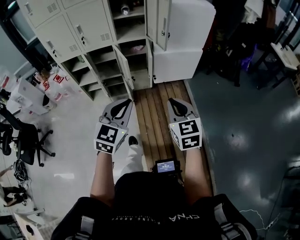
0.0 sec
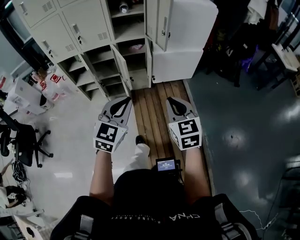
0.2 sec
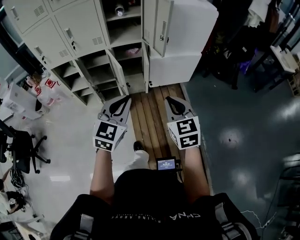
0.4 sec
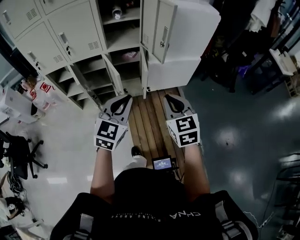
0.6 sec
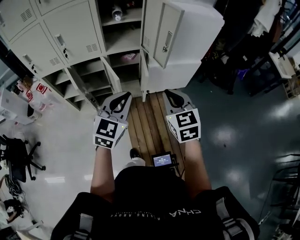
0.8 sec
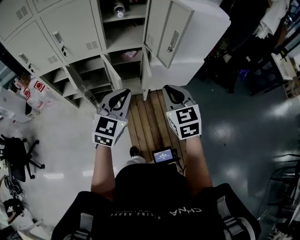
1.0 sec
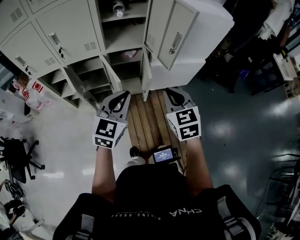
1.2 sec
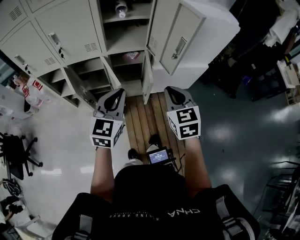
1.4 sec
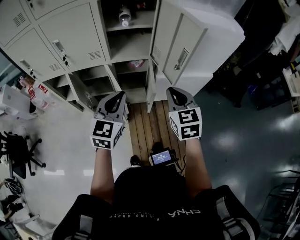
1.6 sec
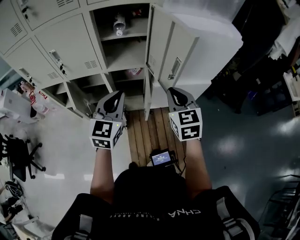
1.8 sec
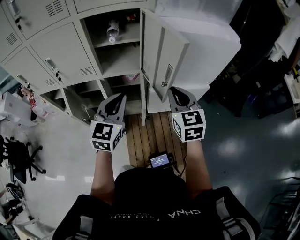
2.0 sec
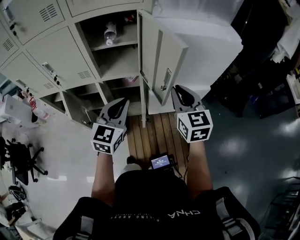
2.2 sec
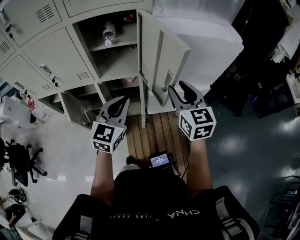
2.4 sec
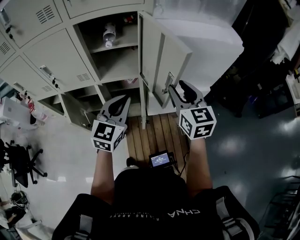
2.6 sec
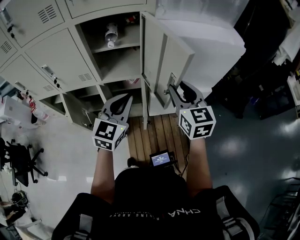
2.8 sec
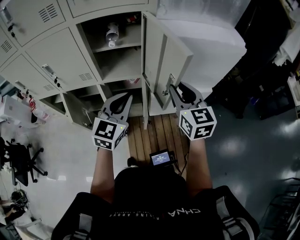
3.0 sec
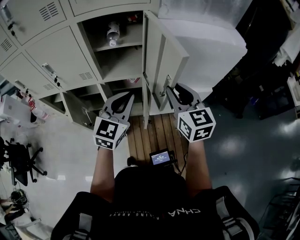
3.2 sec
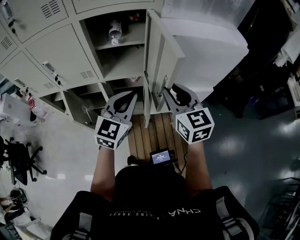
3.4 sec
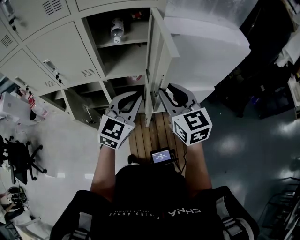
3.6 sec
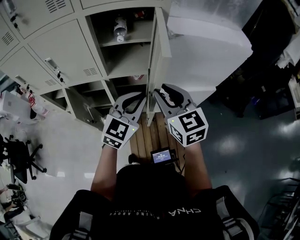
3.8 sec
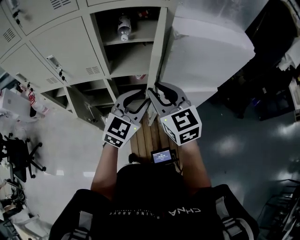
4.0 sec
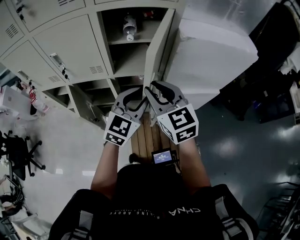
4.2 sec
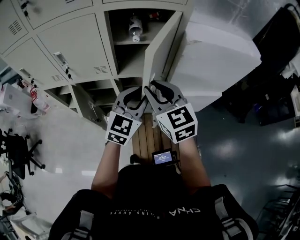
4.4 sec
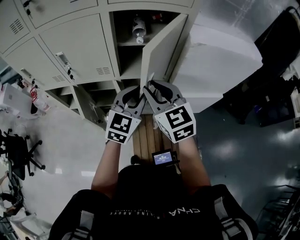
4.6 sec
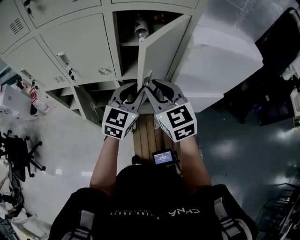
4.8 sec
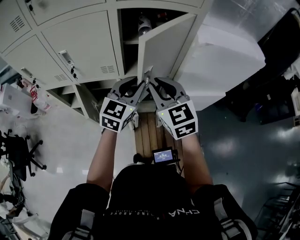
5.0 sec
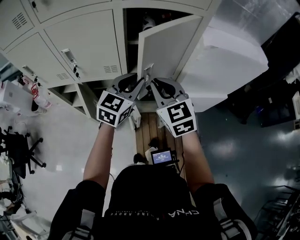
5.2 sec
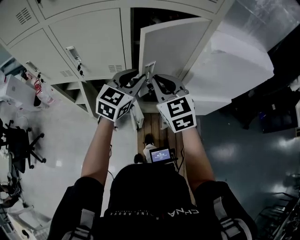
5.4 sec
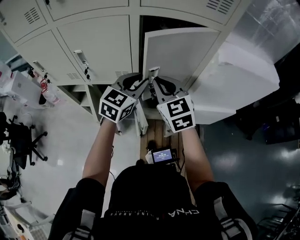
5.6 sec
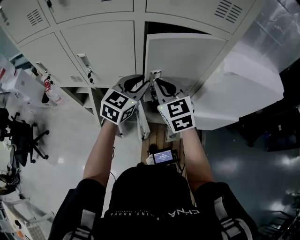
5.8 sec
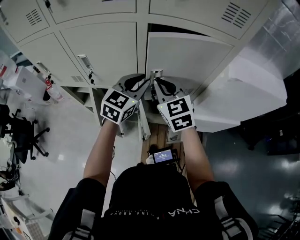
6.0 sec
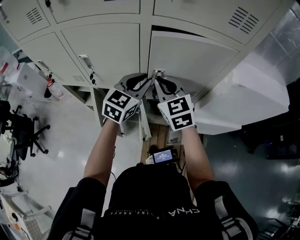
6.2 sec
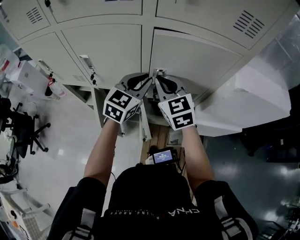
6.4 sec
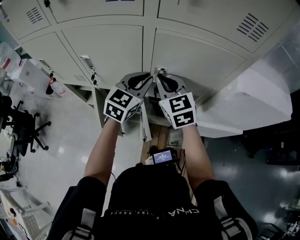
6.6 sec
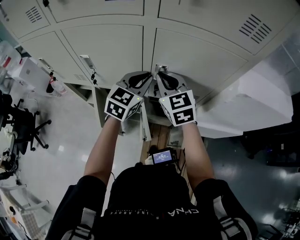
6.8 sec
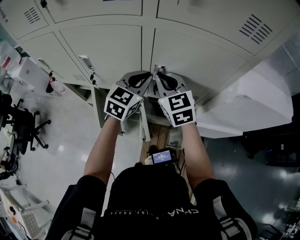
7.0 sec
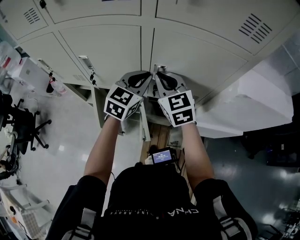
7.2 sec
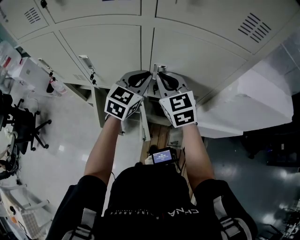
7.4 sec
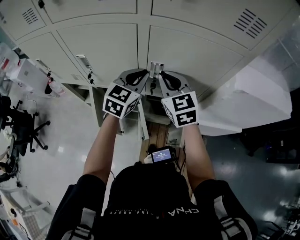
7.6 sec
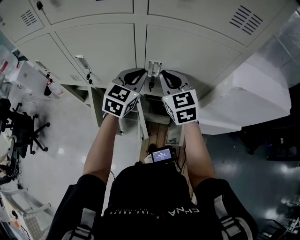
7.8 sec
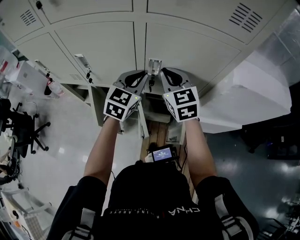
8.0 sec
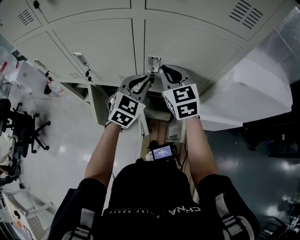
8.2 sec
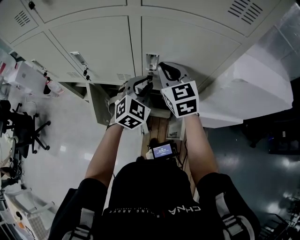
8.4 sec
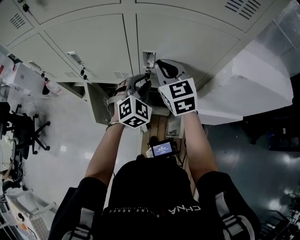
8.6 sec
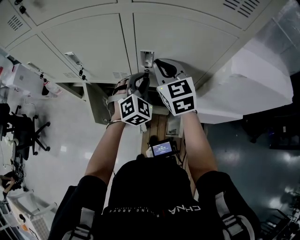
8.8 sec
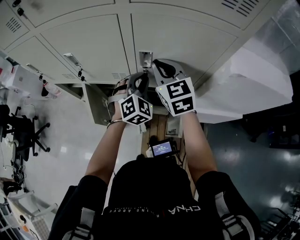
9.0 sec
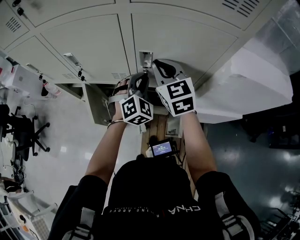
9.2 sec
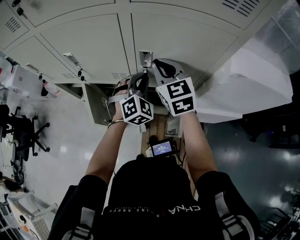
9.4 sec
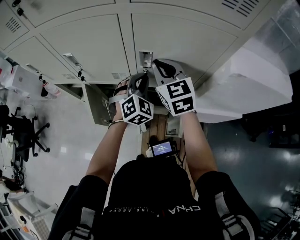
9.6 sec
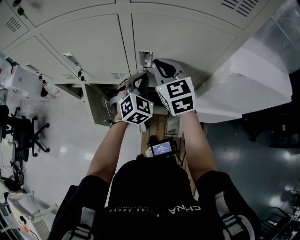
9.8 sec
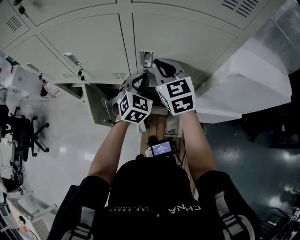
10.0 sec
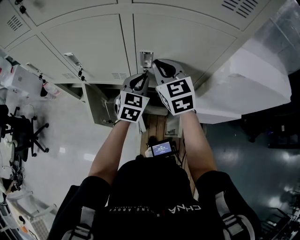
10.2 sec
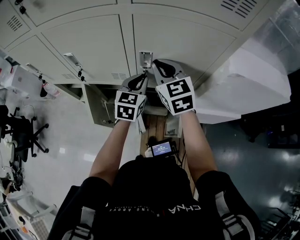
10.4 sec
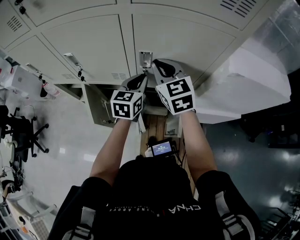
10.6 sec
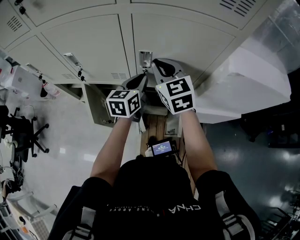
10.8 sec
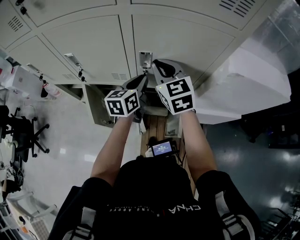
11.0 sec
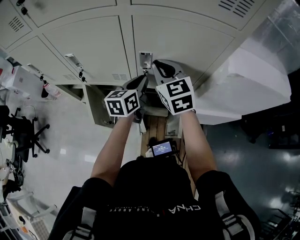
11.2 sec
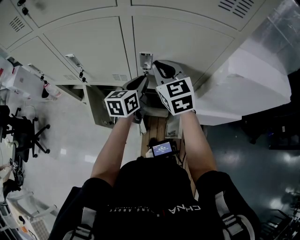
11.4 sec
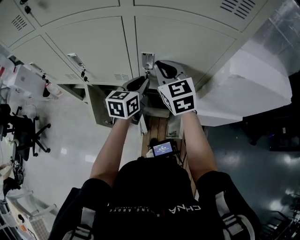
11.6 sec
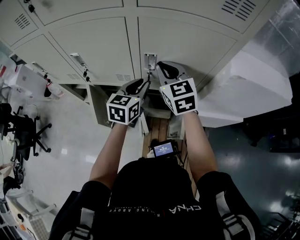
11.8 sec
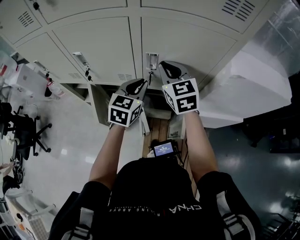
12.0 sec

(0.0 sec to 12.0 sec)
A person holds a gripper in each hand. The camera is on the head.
0.0 sec - 1.6 sec: The pair of grippers is taken forward, approximately 40 cm.
1.6 sec - 3.0 sec: The right gripper moves forward, to the right and upward, roughly 15 cm, and opens. The left gripper moves forward and to the right, some 15 cm.
3.0 sec - 4.4 sec: The right gripper shifts approximately 20 cm to the left; the left gripper heads to the left, covering roughly 5 cm, and opens up.
4.4 sec - 6.0 sec: The grippers both shift forward and to the left by some 20 cm.
6.0 sec - 7.6 sec: Both grippers travel together forward, approximately 5 cm.
7.6 sec - 9.0 sec: The left gripper heads downward, covering about 10 cm, and changes its angle by roughly 40 degrees.
9.0 sec - 10.4 sec: The left gripper twists some 40 degrees counterclockwise, seen from behind.

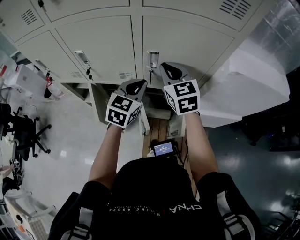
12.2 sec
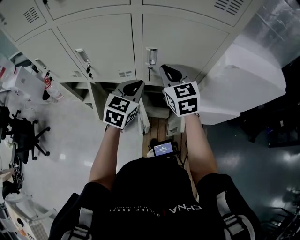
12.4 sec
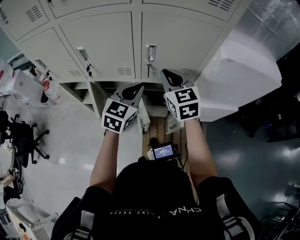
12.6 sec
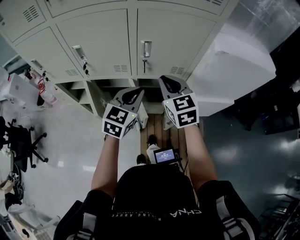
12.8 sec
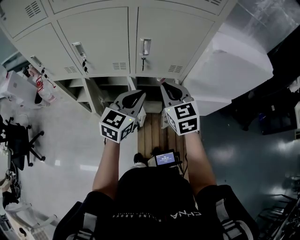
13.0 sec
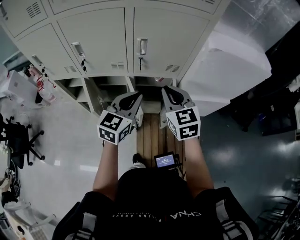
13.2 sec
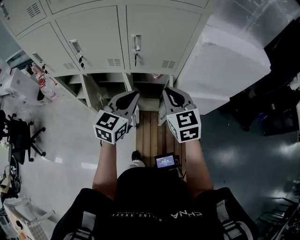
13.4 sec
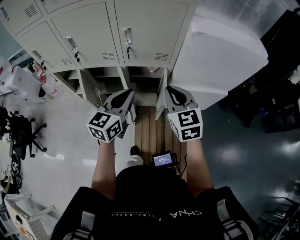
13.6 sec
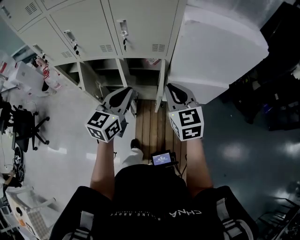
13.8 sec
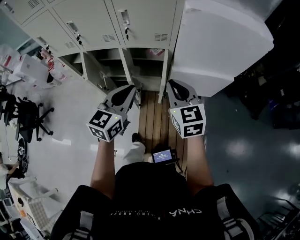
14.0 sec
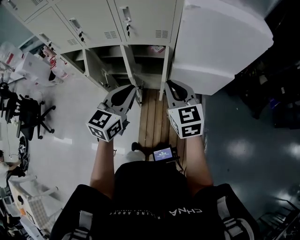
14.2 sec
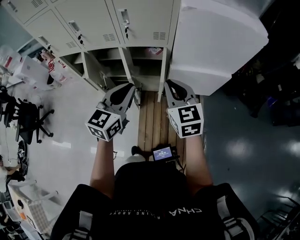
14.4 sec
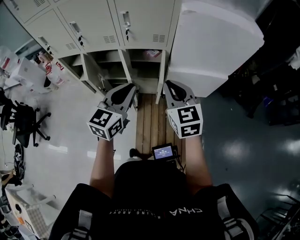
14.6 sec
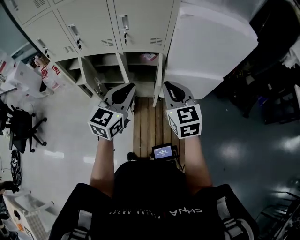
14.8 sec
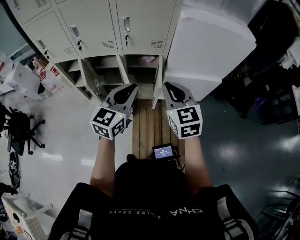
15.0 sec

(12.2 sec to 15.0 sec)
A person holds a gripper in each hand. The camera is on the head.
12.2 sec - 13.6 sec: Both grippers move backward and to the right, about 25 cm.
13.6 sec - 15.0 sec: Both grippers move backward, some 10 cm.

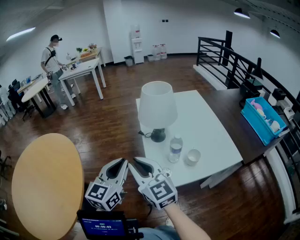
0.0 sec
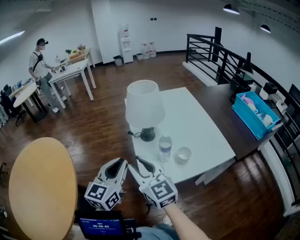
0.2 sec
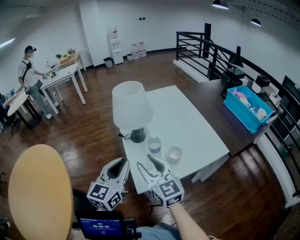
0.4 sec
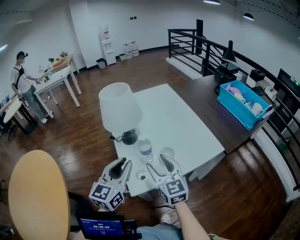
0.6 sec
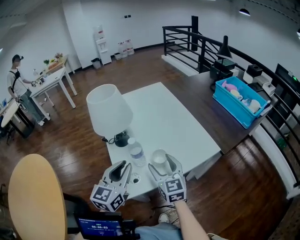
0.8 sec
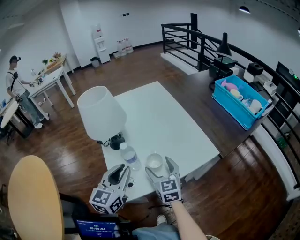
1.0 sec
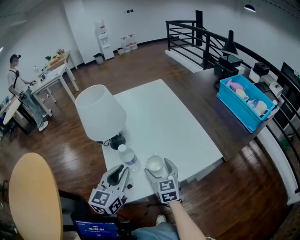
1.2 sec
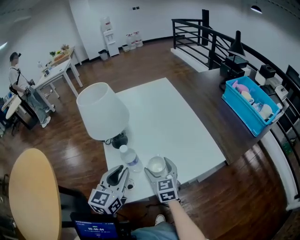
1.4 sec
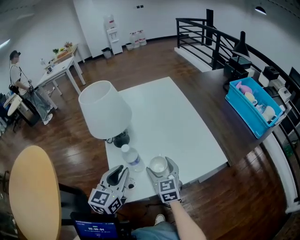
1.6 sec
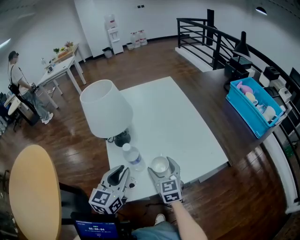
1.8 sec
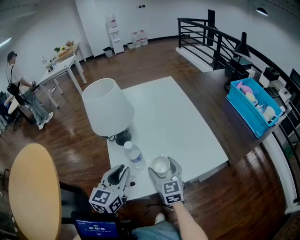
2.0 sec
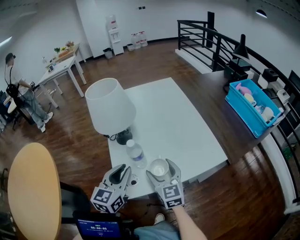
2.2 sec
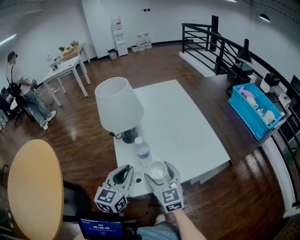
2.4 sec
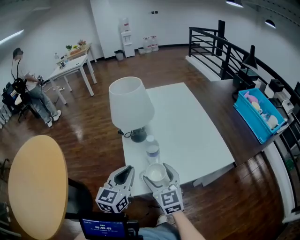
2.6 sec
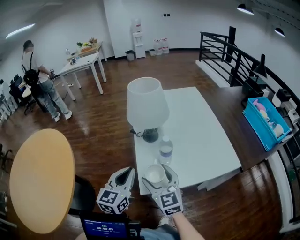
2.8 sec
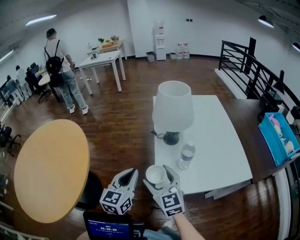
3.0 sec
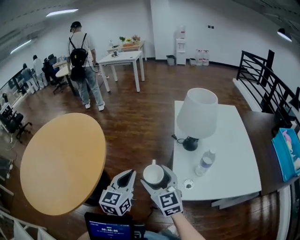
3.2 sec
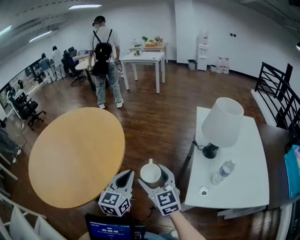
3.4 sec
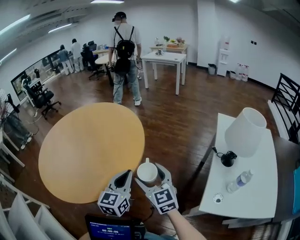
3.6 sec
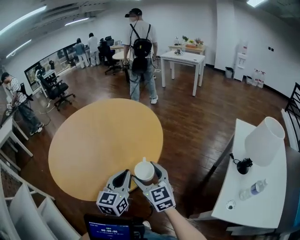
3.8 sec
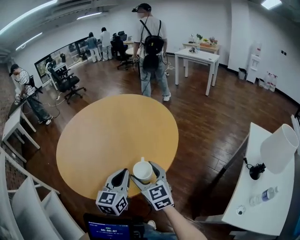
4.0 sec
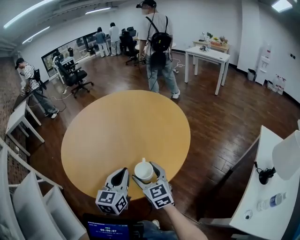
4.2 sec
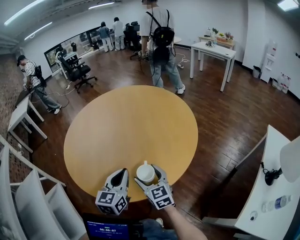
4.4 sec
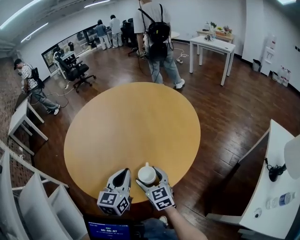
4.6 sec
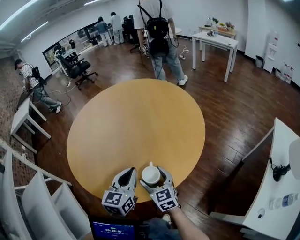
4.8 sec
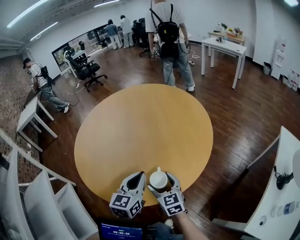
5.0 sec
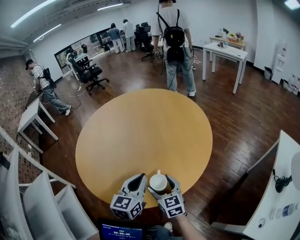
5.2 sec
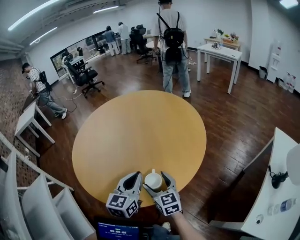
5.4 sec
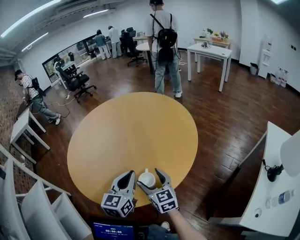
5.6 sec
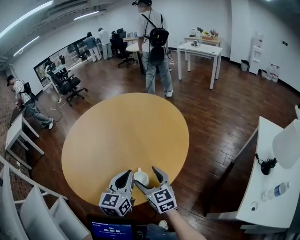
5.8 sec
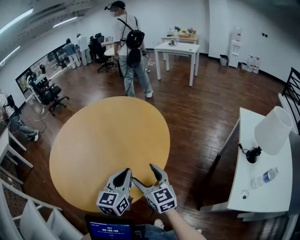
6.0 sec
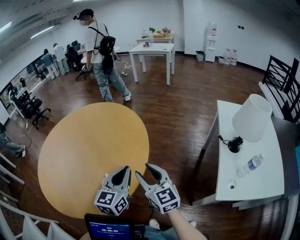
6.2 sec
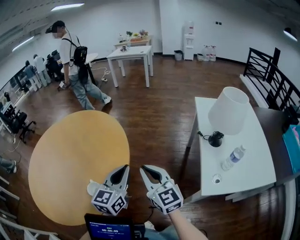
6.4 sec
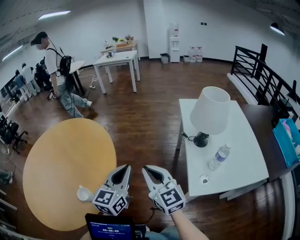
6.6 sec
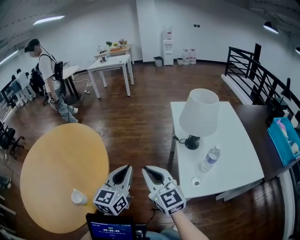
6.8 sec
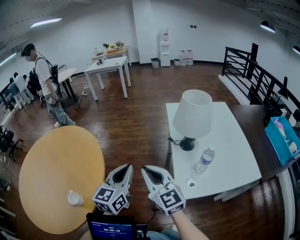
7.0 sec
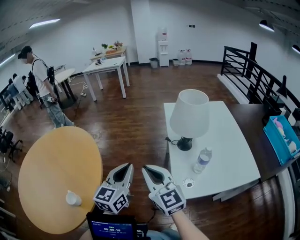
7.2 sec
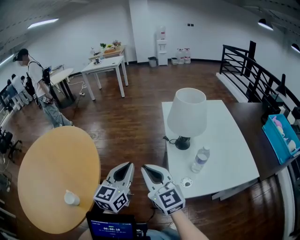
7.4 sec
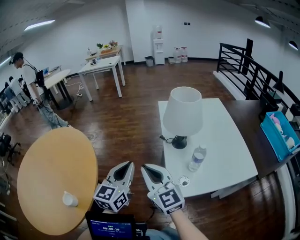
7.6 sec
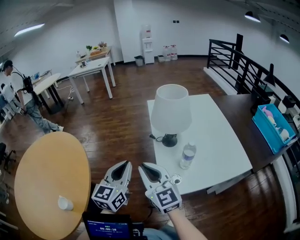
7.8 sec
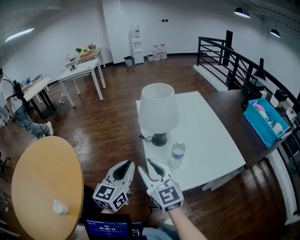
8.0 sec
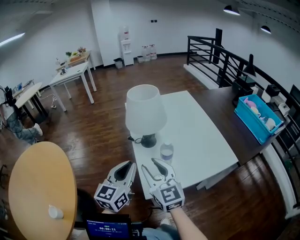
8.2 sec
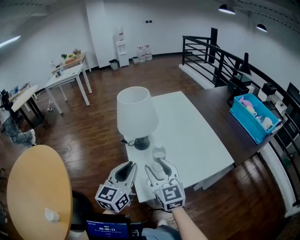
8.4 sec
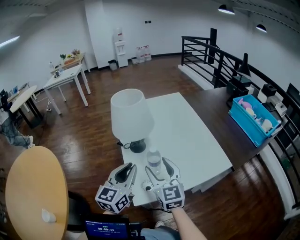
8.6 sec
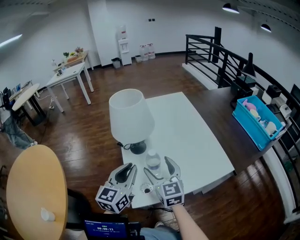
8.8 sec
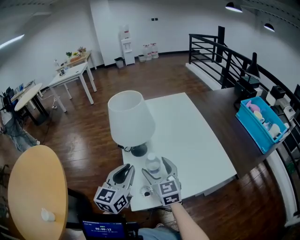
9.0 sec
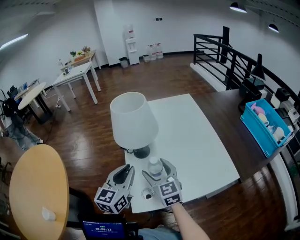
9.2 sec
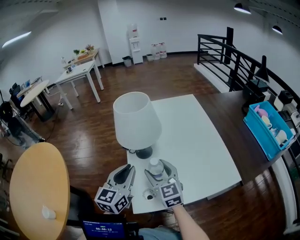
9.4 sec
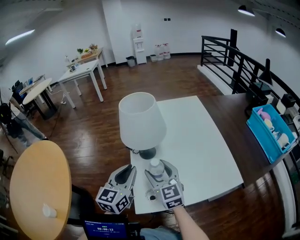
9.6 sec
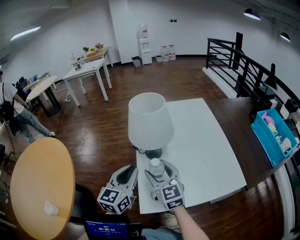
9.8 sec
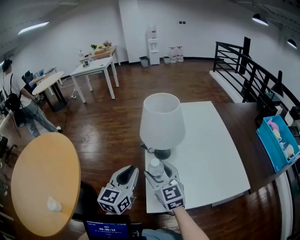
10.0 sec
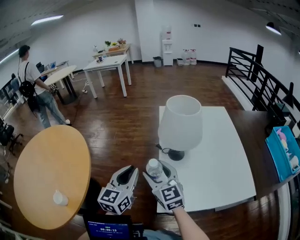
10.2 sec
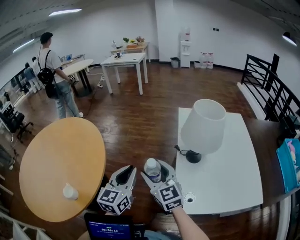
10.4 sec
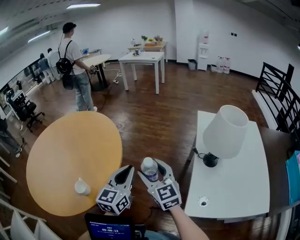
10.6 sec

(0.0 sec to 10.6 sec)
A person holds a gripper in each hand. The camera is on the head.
0.0 sec - 1.6 sec: The left gripper shifts some 25 cm to the right, downward and forward. Meanwhile the right gripper heads to the right, downward and forward, covering some 35 cm, turns by roughly 30 degrees, and opens.
1.6 sec - 3.0 sec: The right gripper travels to the left, upward and backward by about 30 cm, and swivels some 30 degrees, while the left gripper moves to the left, roughly 20 cm.
3.0 sec - 4.6 sec: Both grippers are carried about 60 cm. The right gripper turns by some 50 degrees. Meanwhile the left gripper changes its angle by roughly 50 degrees.
4.6 sec - 6.0 sec: The left gripper is displaced to the right and upward by about 10 cm. The right gripper goes roughly 15 cm upward and to the right.
6.0 sec - 7.6 sec: The right gripper moves roughly 40 cm, swivels about 30 degrees, and closes up. The left gripper ends up roughly 40 cm from where it was, and swivels about 40 degrees.
7.6 sec - 9.0 sec: The right gripper heads to the right, forward and downward, covering about 30 cm, changes its angle by roughly 30 degrees, and opens, while the left gripper travels to the right and forward by some 20 cm.
9.0 sec - 10.6 sec: The right gripper changes place by some 40 cm, and rotates some 40 degrees, while the left gripper shifts by roughly 35 cm, and turns by roughly 30 degrees.
